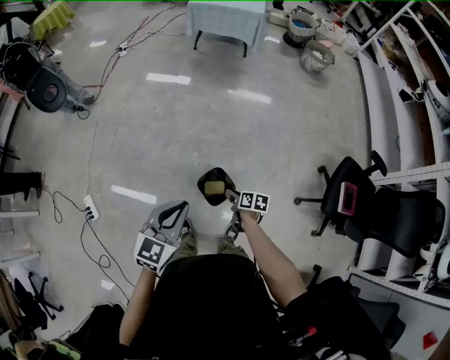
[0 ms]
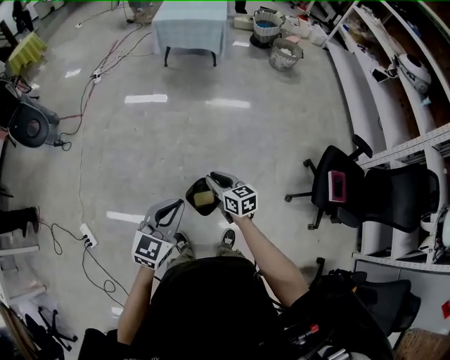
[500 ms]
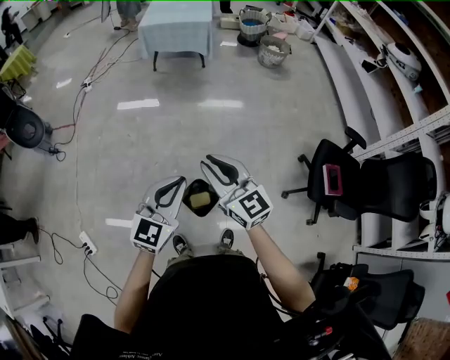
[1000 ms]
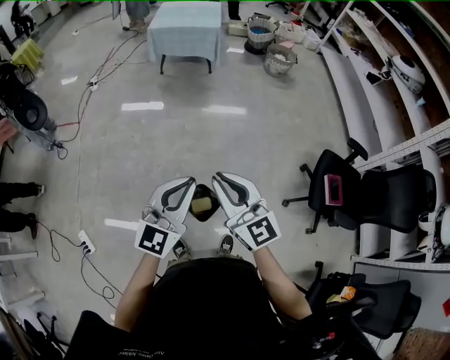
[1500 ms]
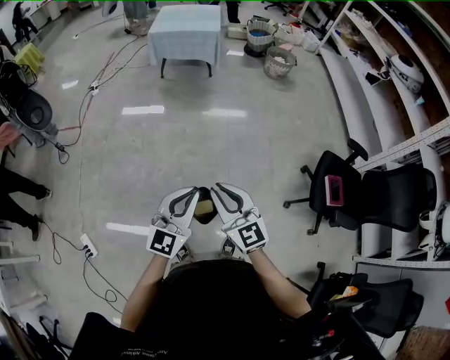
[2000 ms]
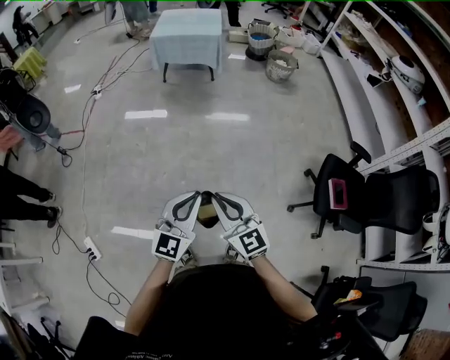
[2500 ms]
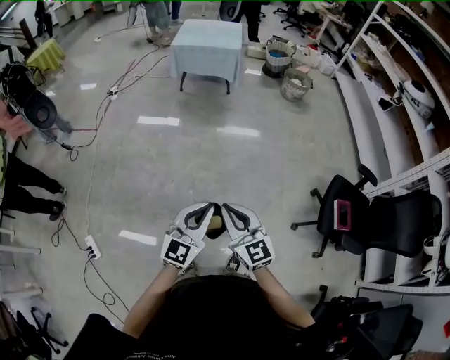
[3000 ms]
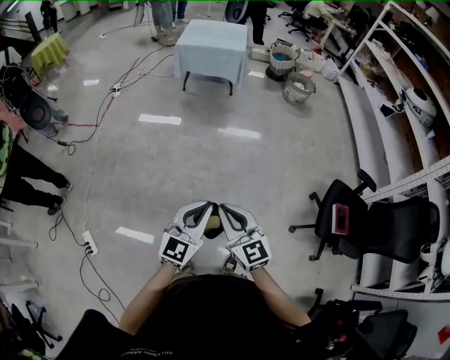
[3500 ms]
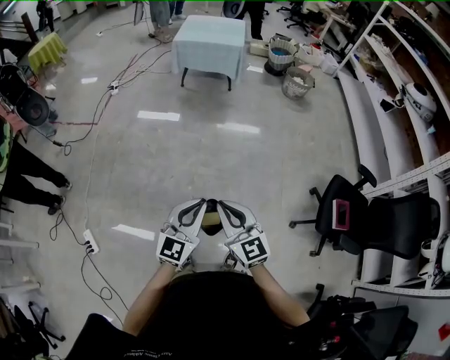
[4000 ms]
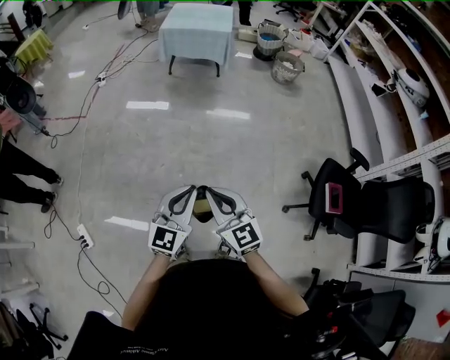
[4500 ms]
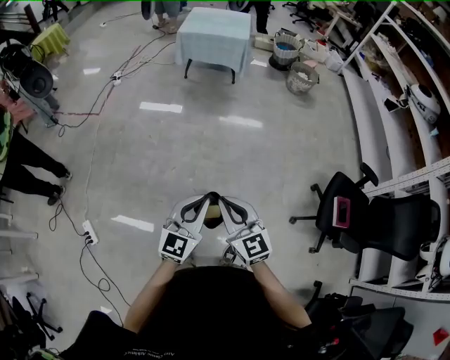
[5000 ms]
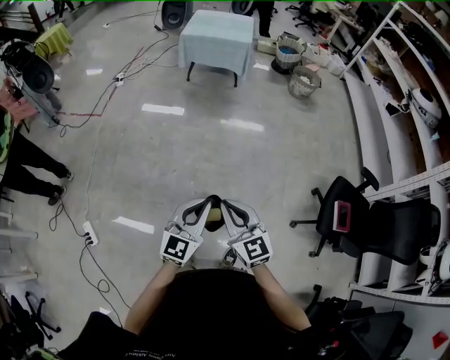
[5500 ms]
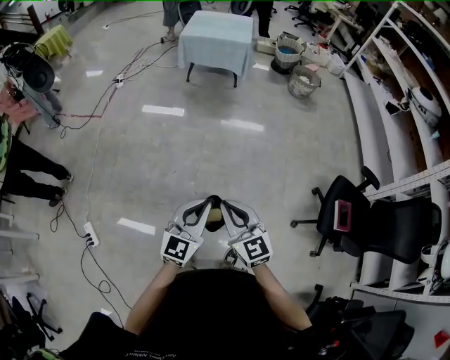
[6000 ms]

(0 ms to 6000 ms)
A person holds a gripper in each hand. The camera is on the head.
0 ms - 2000 ms: The right gripper moves upward, roughly 35 cm, and angles its fingers upward, by roughly 40 degrees. The left gripper is displaced to the right, forward and upward by approximately 15 cm.
2000 ms - 6000 ms: The grippers make only small movements.

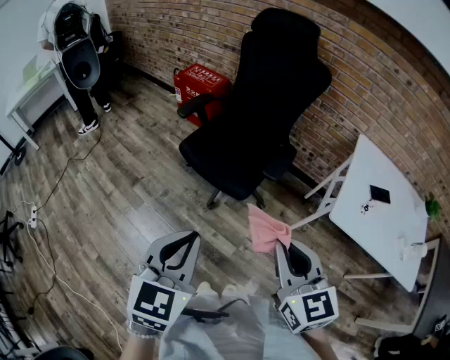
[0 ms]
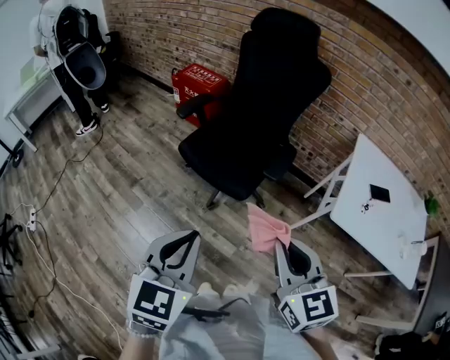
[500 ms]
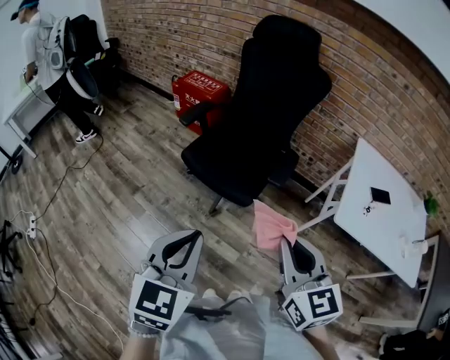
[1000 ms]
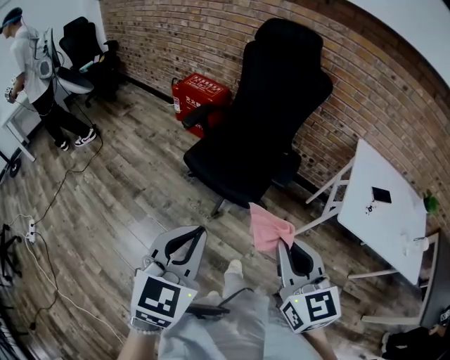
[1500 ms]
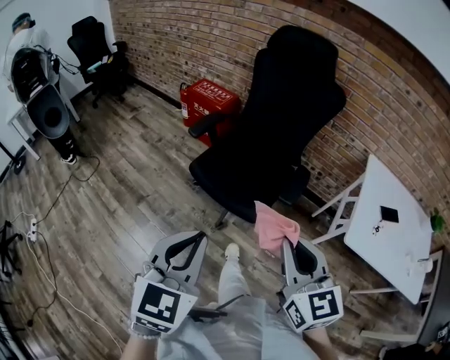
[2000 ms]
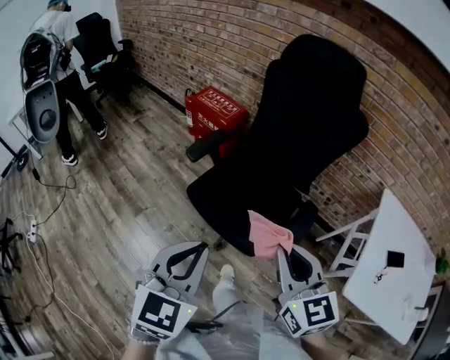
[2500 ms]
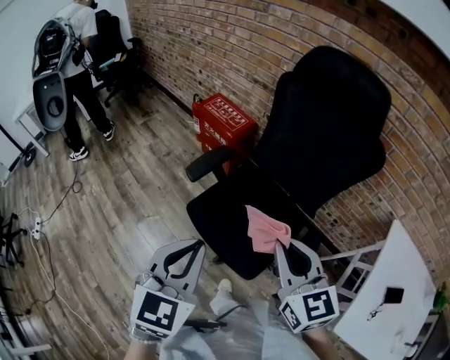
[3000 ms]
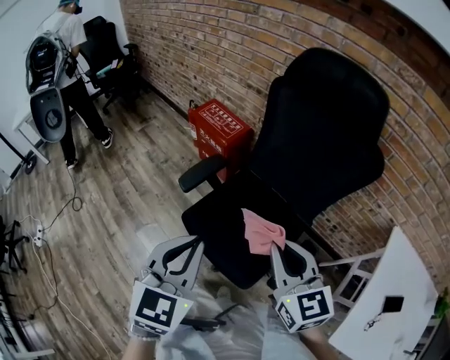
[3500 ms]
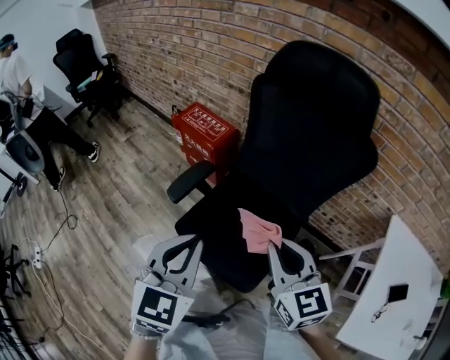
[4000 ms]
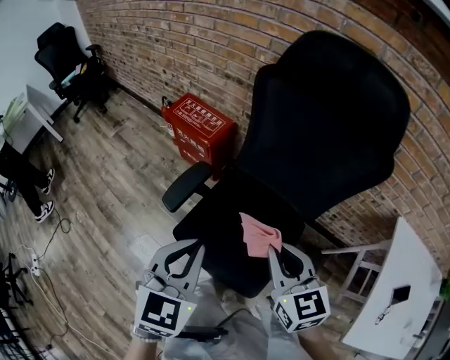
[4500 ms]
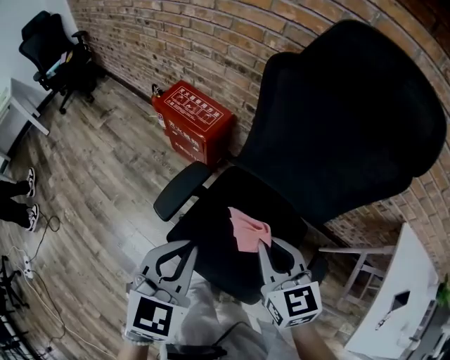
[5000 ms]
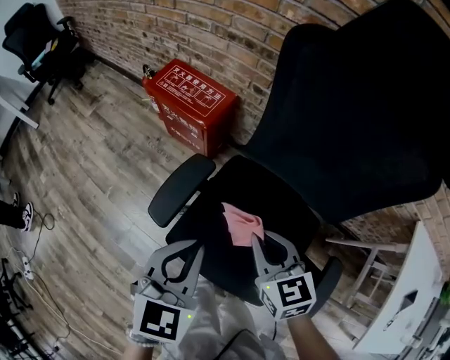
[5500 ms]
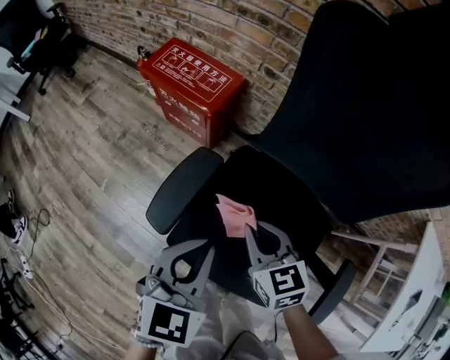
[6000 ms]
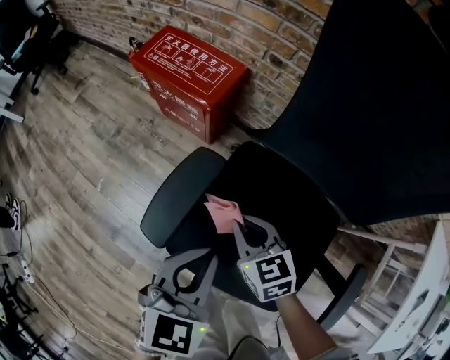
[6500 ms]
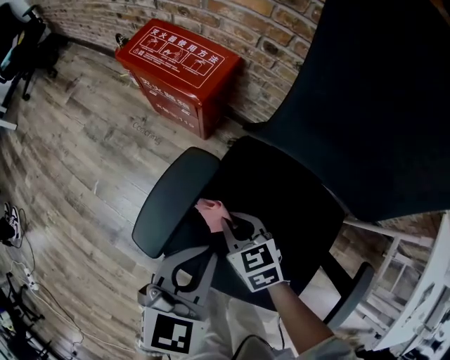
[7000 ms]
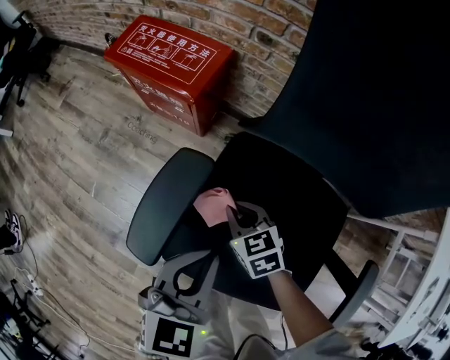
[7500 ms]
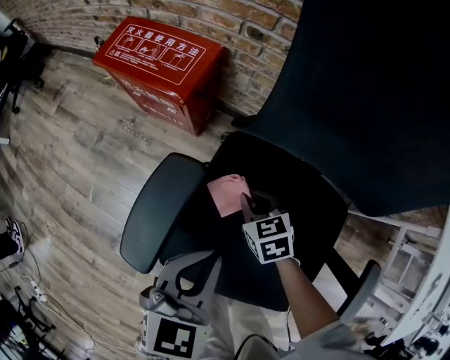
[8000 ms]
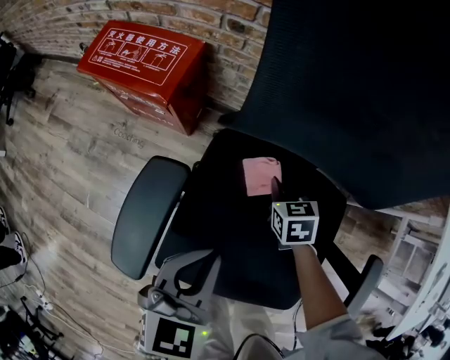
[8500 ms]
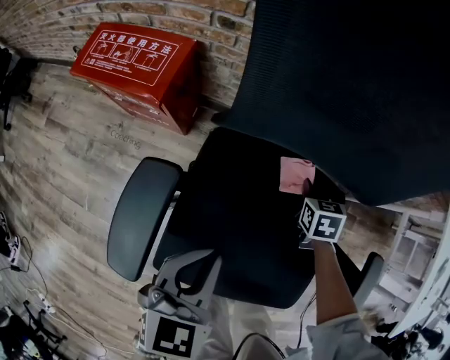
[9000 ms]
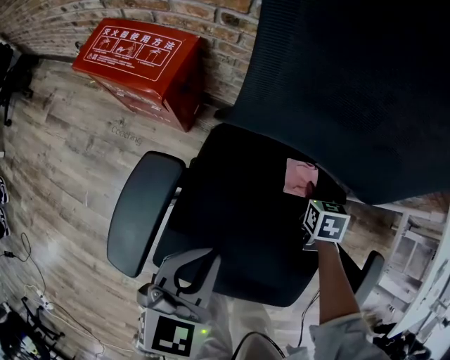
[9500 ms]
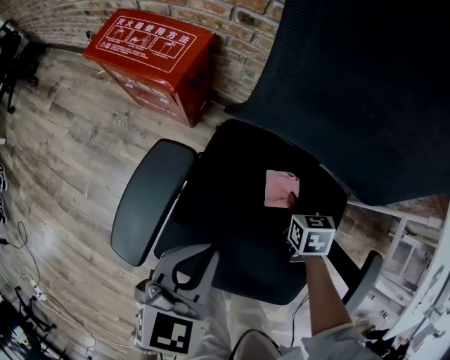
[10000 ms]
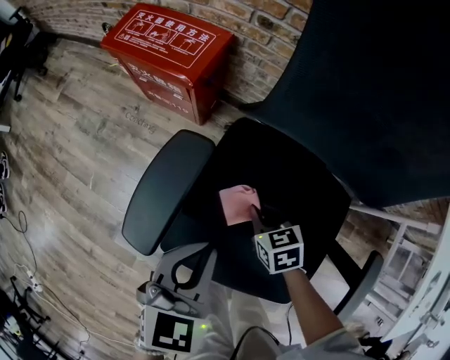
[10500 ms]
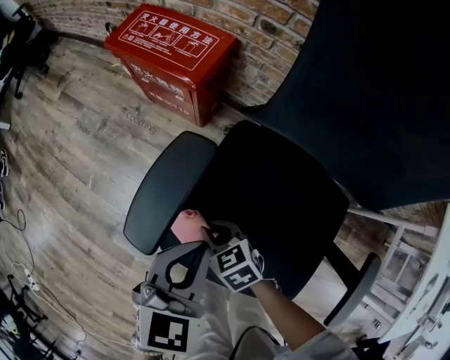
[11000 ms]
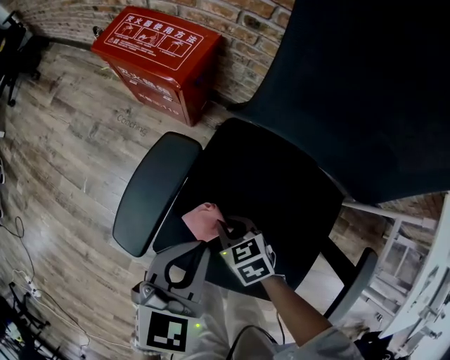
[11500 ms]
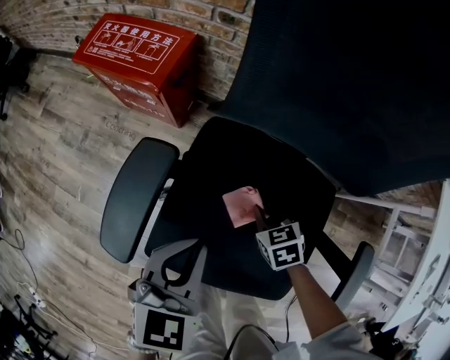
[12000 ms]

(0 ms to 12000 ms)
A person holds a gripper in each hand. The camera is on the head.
0 ms - 2000 ms: The grippers both shift forward and to the left by roughly 10 cm.
2000 ms - 4000 ms: The two grippers travel together, forward, roughly 40 cm.
4000 ms - 6000 ms: The right gripper is displaced downward, forward and to the left by approximately 40 cm, and turns by roughly 20 degrees; the left gripper travels downward and forward by approximately 35 cm.
6000 ms - 8000 ms: The left gripper goes roughly 10 cm downward; the right gripper goes about 25 cm downward and forward.
8000 ms - 10000 ms: The right gripper changes place by roughly 15 cm, and rotates roughly 20 degrees.

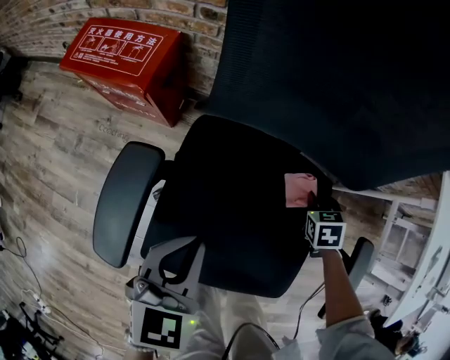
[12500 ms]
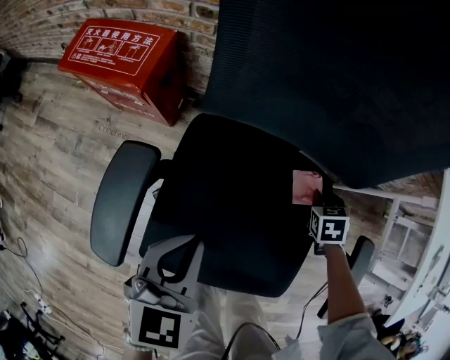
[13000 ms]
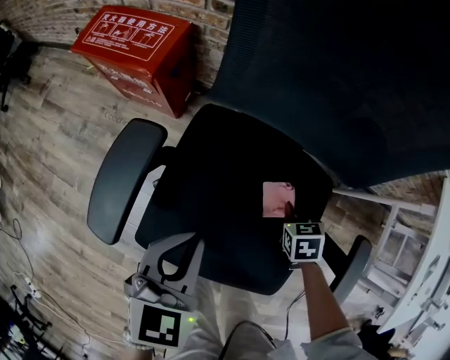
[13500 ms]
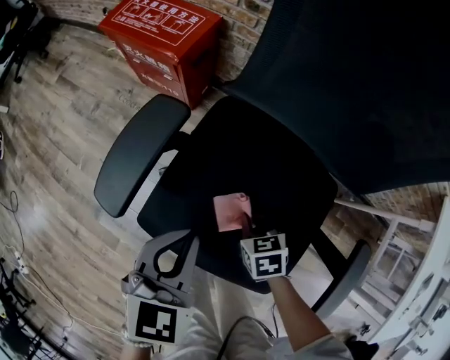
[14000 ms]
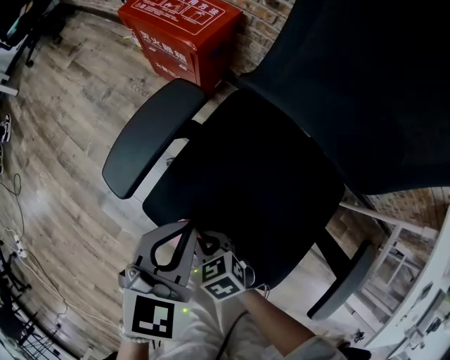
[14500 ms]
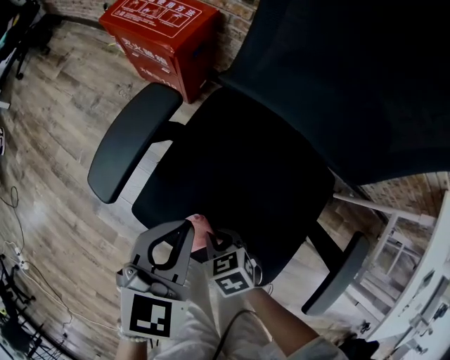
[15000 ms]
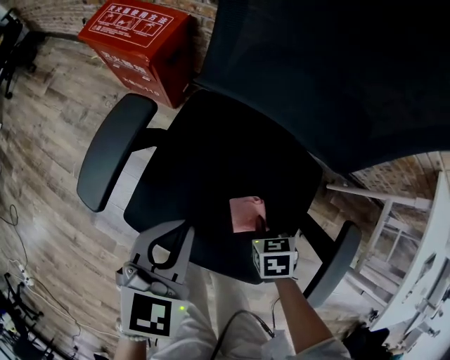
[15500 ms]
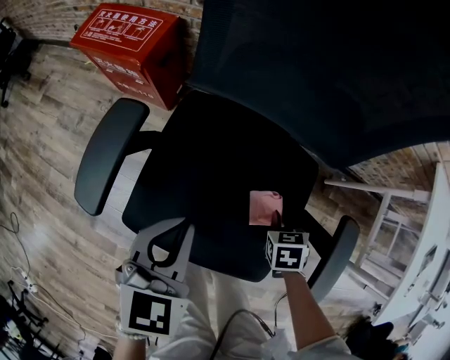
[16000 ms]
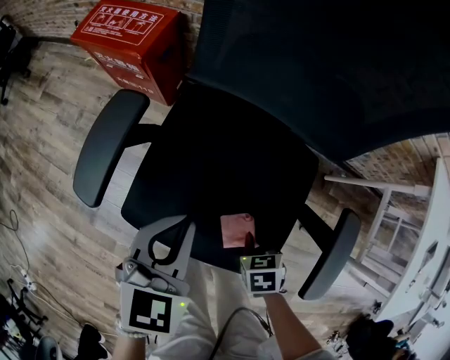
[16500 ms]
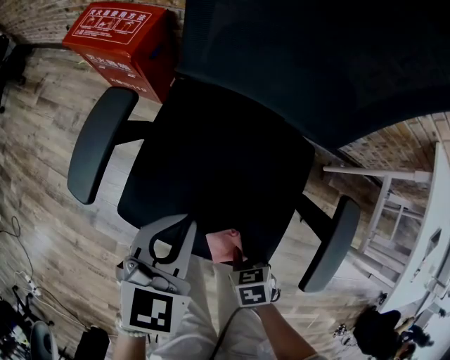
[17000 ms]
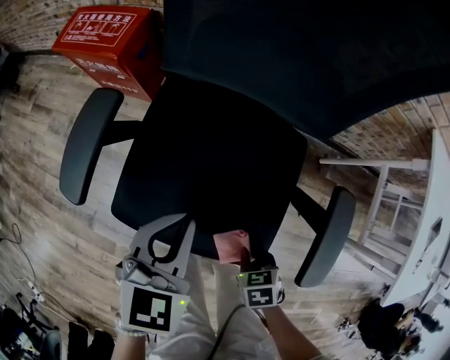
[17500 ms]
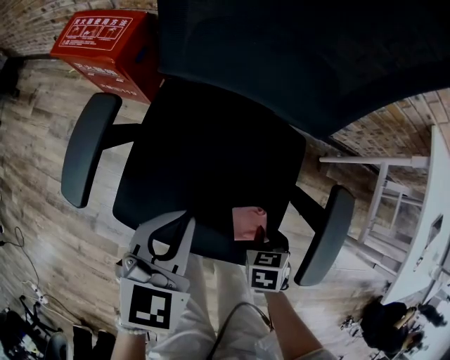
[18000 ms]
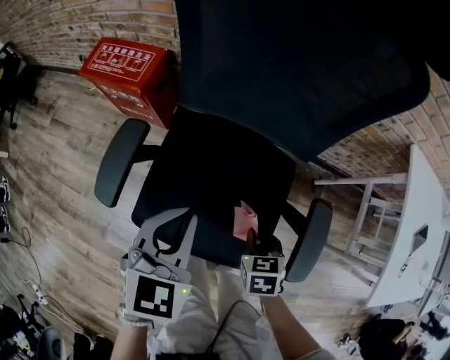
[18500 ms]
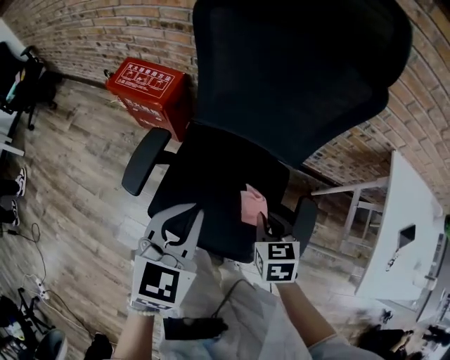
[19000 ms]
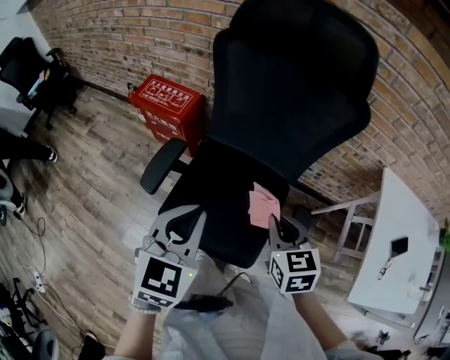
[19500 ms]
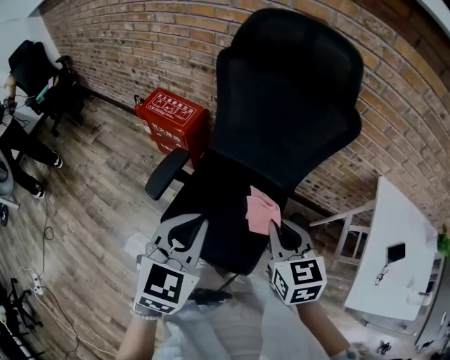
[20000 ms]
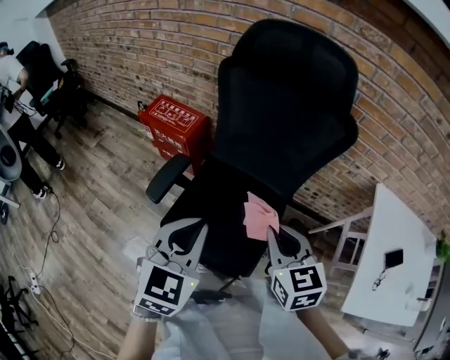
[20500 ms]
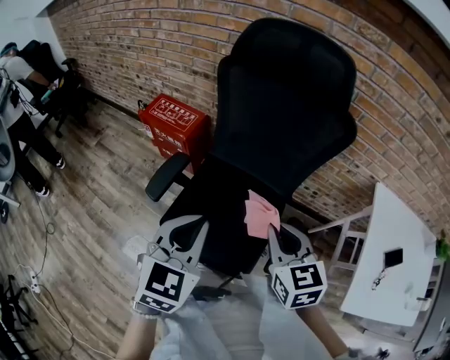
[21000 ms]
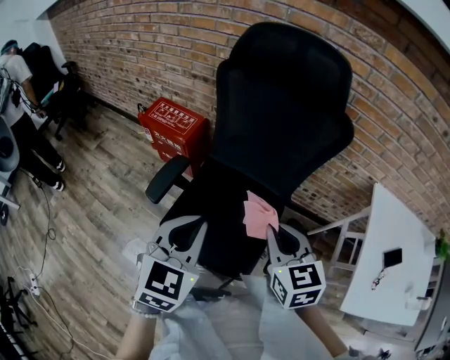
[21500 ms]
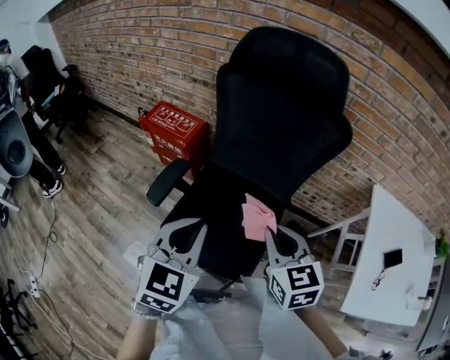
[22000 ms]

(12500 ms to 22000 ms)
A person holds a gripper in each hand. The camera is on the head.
12500 ms - 14500 ms: The right gripper ends up about 40 cm from where it was, and rotates about 50 degrees. Meanwhile the left gripper changes place by some 10 cm.
14500 ms - 16500 ms: The left gripper ends up roughly 10 cm from where it was. Meanwhile the right gripper moves approximately 20 cm, and rotates roughly 40 degrees.
16500 ms - 18000 ms: The right gripper changes place by about 5 cm.
18000 ms - 20000 ms: Both grippers travel together upward, approximately 40 cm. The right gripper tilts its fingers approximately 40 degrees upward.
20000 ms - 22000 ms: The grippers stay close to where they were, moving slightly.
